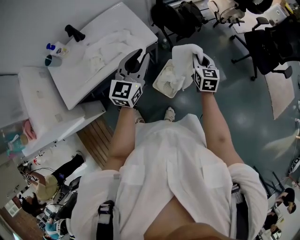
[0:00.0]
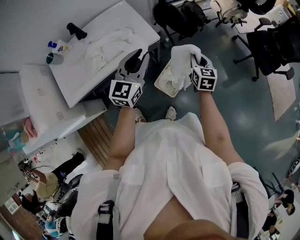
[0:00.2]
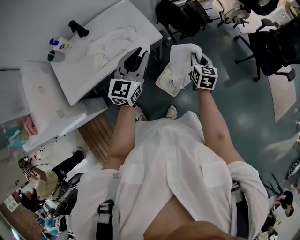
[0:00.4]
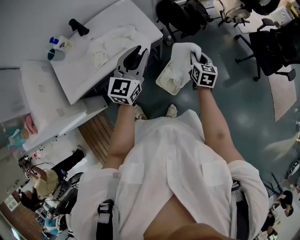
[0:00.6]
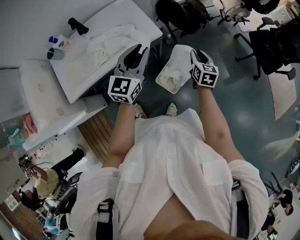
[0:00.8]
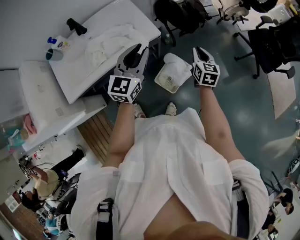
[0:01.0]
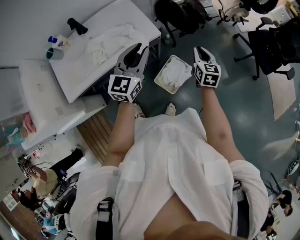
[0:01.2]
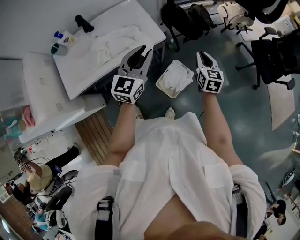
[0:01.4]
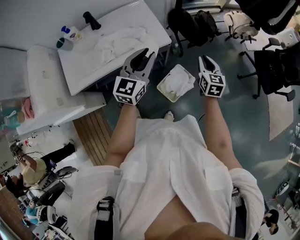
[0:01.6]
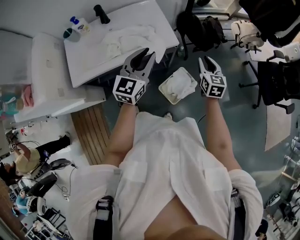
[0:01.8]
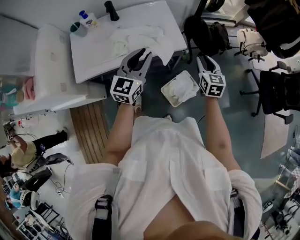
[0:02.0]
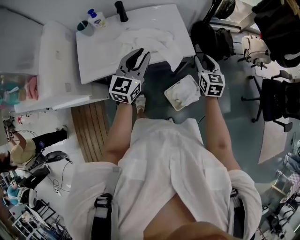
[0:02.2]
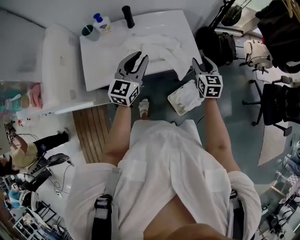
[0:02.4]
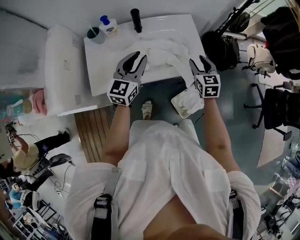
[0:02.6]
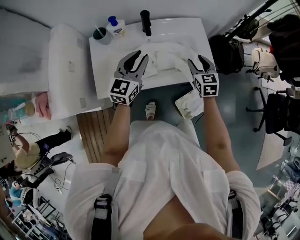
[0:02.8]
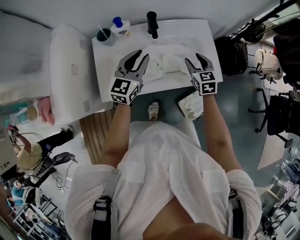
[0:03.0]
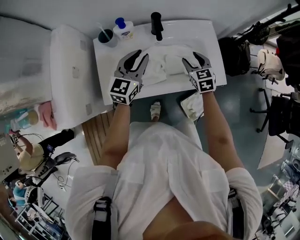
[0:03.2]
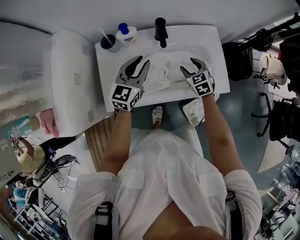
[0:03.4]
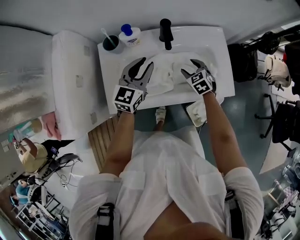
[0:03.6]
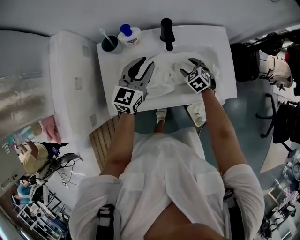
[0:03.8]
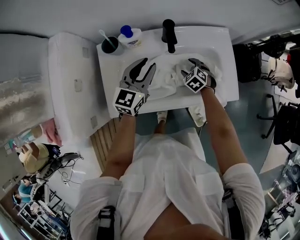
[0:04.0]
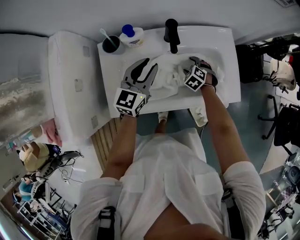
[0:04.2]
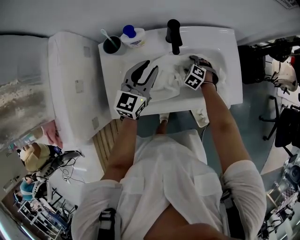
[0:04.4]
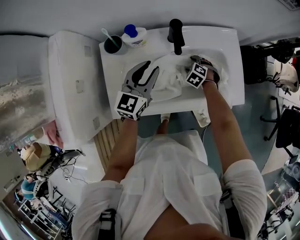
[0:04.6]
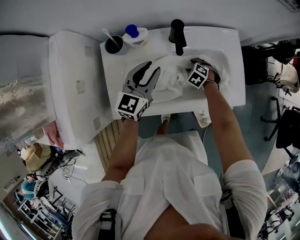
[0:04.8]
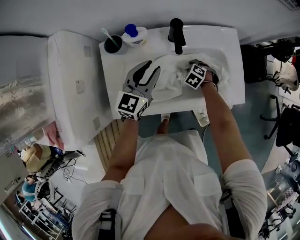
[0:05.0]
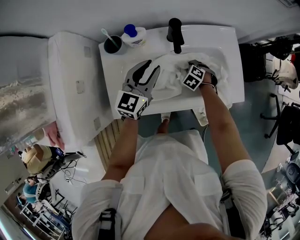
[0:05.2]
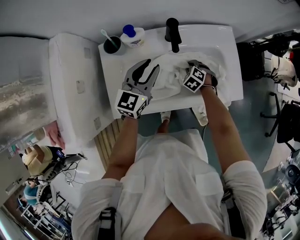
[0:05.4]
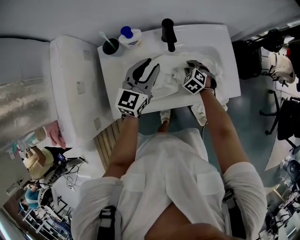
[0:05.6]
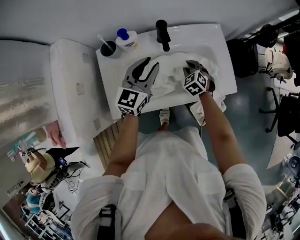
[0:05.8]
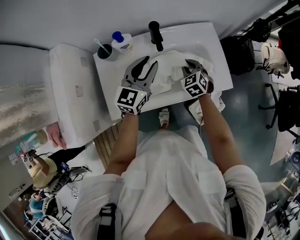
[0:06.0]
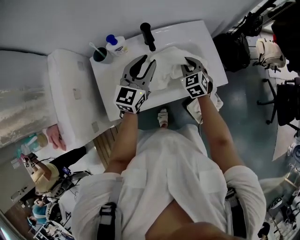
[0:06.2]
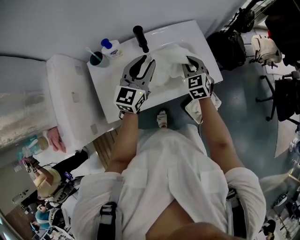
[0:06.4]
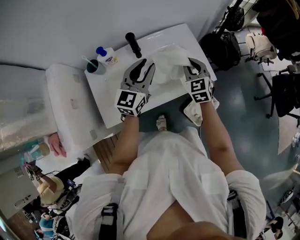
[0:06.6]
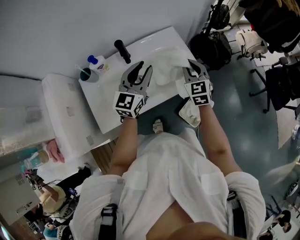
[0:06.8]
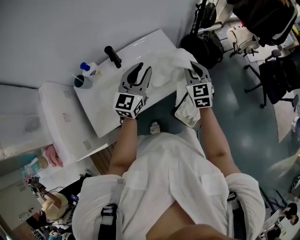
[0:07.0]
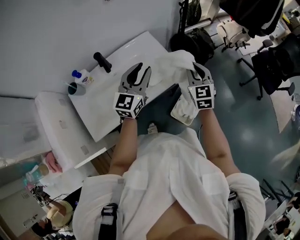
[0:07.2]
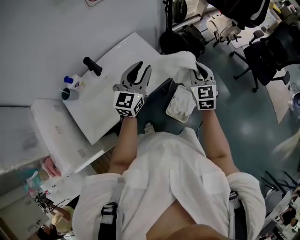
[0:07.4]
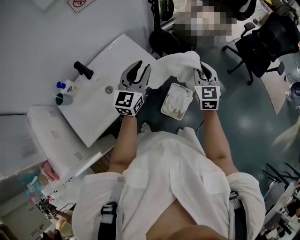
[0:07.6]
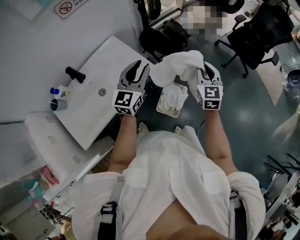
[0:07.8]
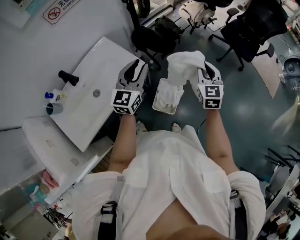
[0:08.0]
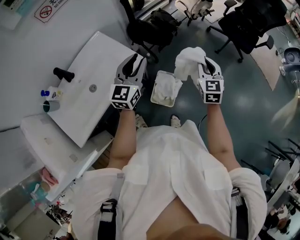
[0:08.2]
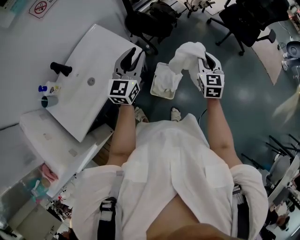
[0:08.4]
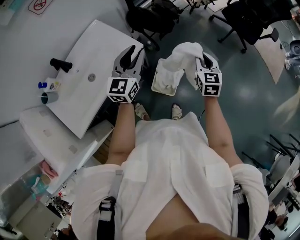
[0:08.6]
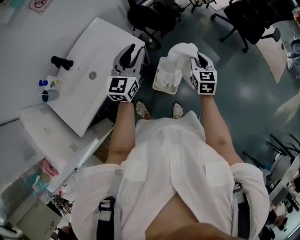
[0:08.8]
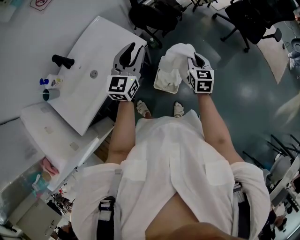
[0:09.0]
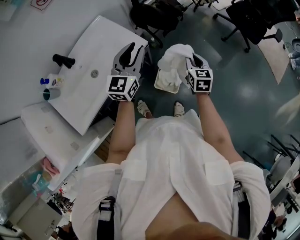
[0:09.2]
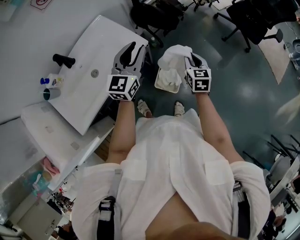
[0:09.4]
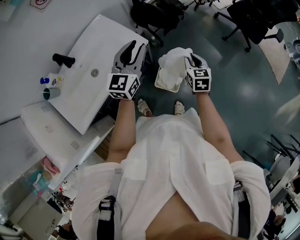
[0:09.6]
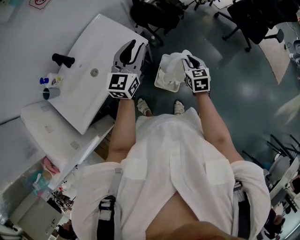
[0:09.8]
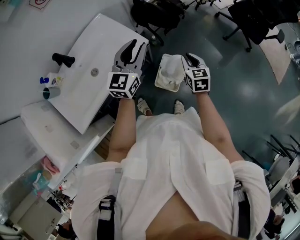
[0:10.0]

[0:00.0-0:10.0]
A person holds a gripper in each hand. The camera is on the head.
0:00.0 to 0:01.4: The grippers make only small movements.
0:01.4 to 0:02.8: The left gripper shifts some 30 cm to the left. Meanwhile the right gripper goes about 40 cm to the left and forward, and swivels about 30 degrees.
0:02.8 to 0:04.2: The left gripper moves forward, downward and to the left, approximately 15 cm, while the right gripper heads downward, to the left and forward, covering approximately 25 cm, and tilts its fingers some 40 degrees downward.
0:04.2 to 0:05.8: The right gripper shifts about 10 cm upward, turns by some 20 degrees, and closes.
0:05.8 to 0:07.2: The right gripper travels to the right and upward by about 40 cm, and points its fingers about 30 degrees further upward, while the left gripper shifts roughly 25 cm to the right.
0:07.2 to 0:08.6: The grippers both shift to the right by approximately 25 cm. The right gripper swivels approximately 30 degrees.
0:08.6 to 0:10.0: The right gripper travels to the left and downward by about 10 cm.

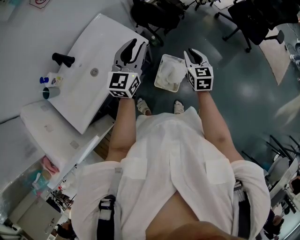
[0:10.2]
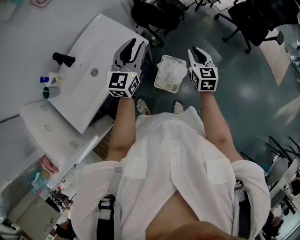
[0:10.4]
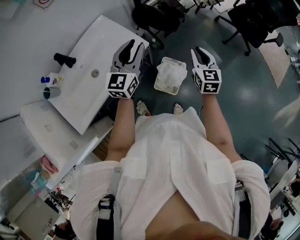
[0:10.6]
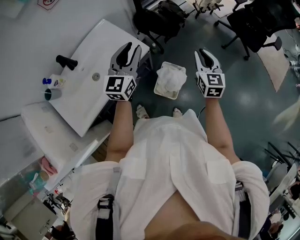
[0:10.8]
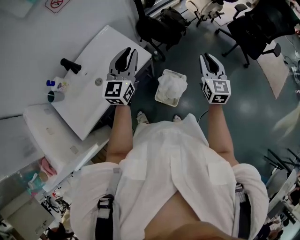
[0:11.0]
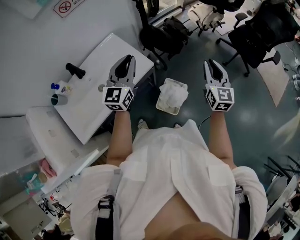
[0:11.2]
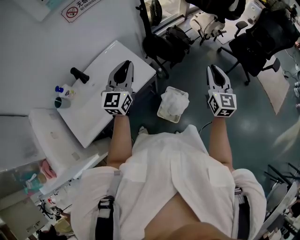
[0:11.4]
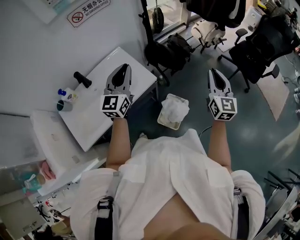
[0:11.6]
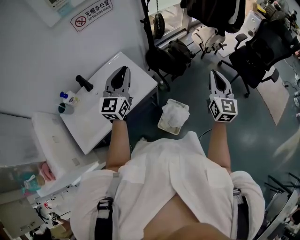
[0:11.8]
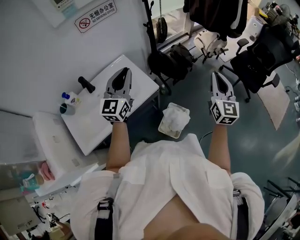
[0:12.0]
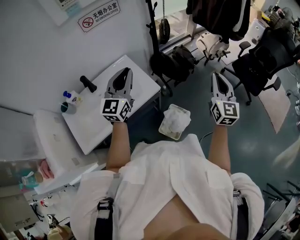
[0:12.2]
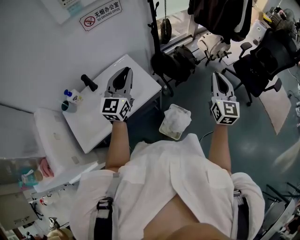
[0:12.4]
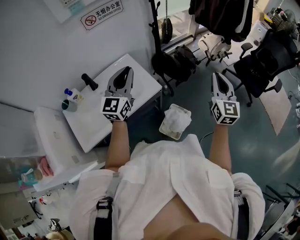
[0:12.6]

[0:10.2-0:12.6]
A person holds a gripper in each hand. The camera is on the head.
0:10.2 to 0:11.4: The right gripper moves upward, some 15 cm, and changes its angle by roughly 20 degrees. Meanwhile the left gripper heads upward and to the left, covering roughly 10 cm.
0:11.4 to 0:12.6: Both grippers move upward, some 5 cm.

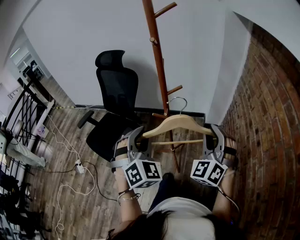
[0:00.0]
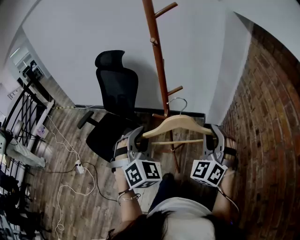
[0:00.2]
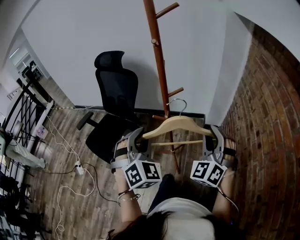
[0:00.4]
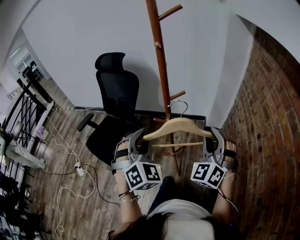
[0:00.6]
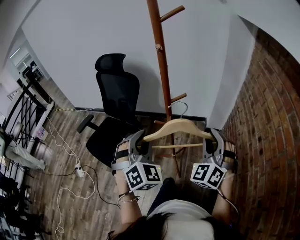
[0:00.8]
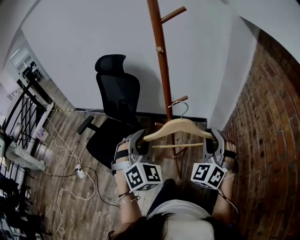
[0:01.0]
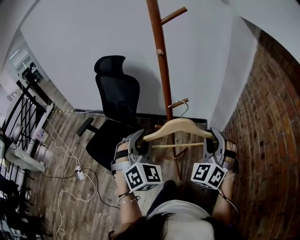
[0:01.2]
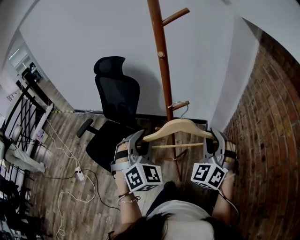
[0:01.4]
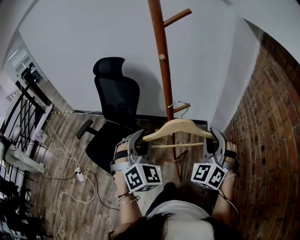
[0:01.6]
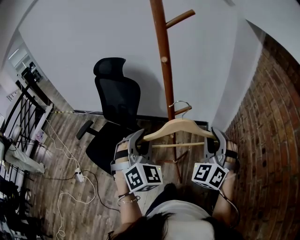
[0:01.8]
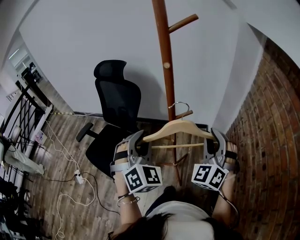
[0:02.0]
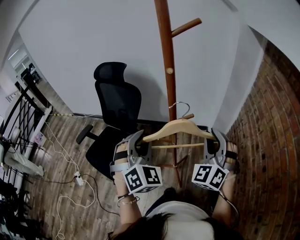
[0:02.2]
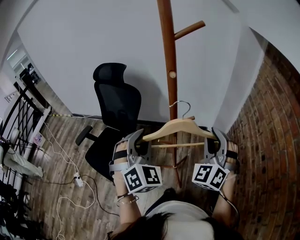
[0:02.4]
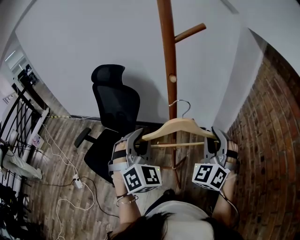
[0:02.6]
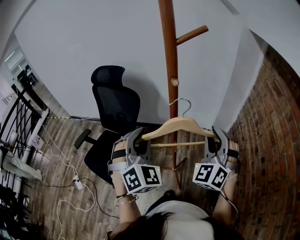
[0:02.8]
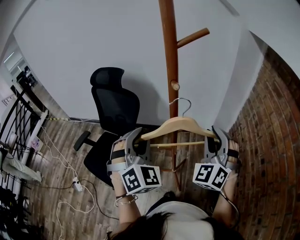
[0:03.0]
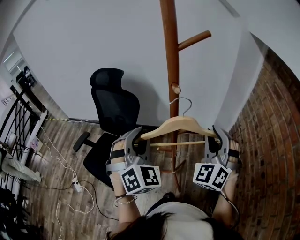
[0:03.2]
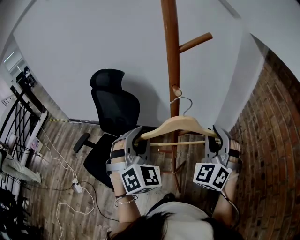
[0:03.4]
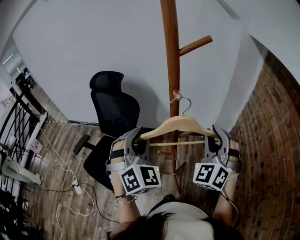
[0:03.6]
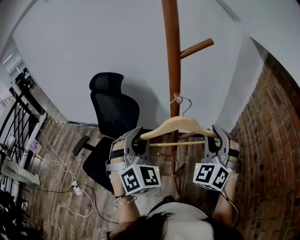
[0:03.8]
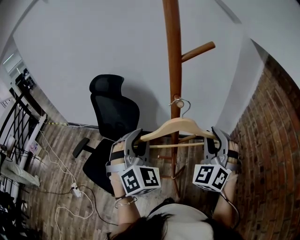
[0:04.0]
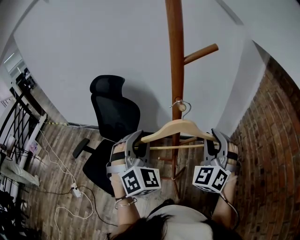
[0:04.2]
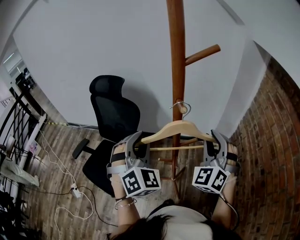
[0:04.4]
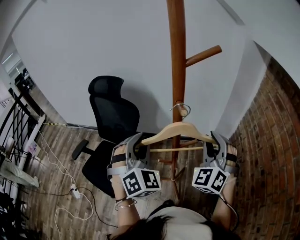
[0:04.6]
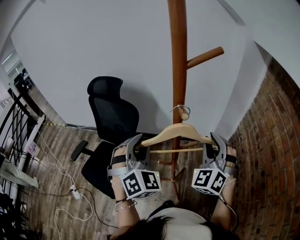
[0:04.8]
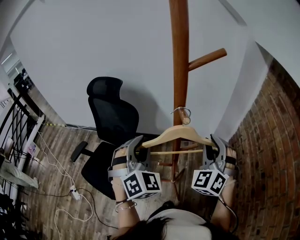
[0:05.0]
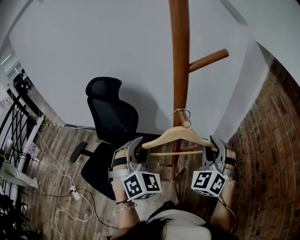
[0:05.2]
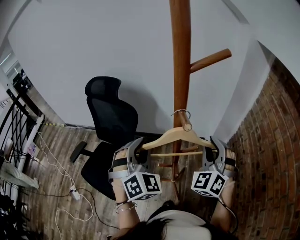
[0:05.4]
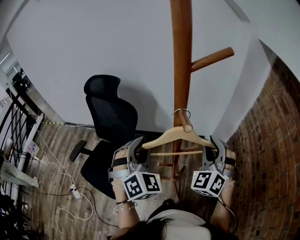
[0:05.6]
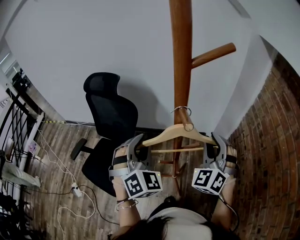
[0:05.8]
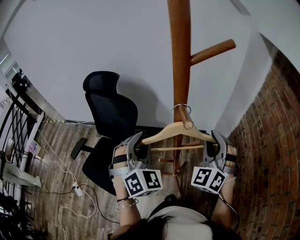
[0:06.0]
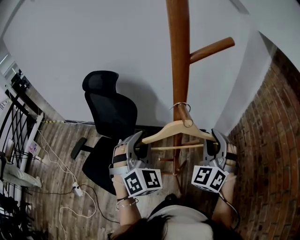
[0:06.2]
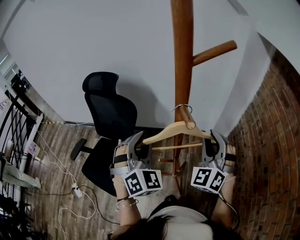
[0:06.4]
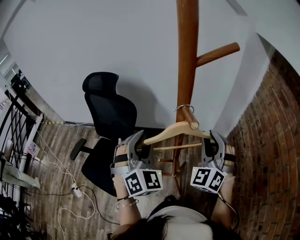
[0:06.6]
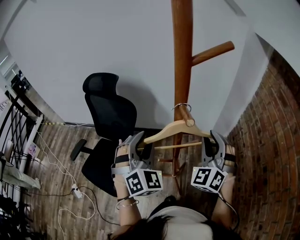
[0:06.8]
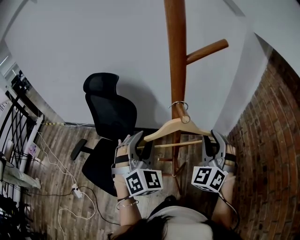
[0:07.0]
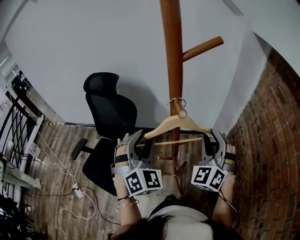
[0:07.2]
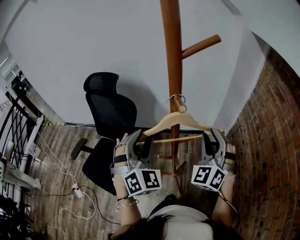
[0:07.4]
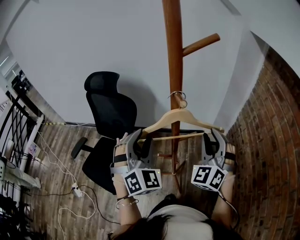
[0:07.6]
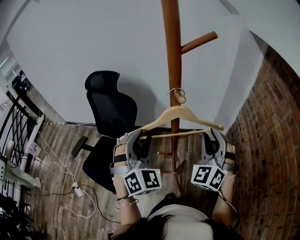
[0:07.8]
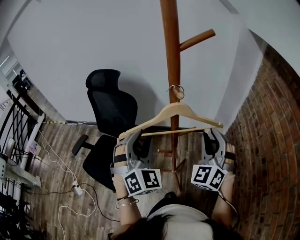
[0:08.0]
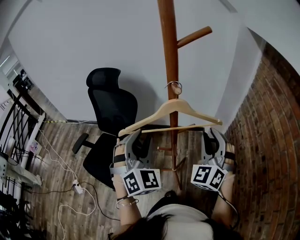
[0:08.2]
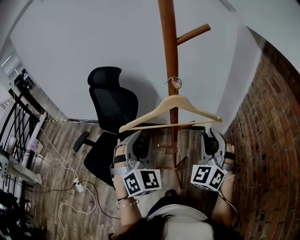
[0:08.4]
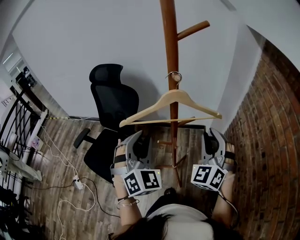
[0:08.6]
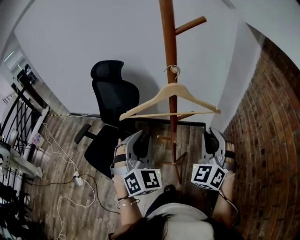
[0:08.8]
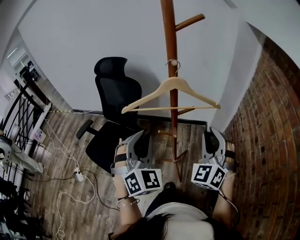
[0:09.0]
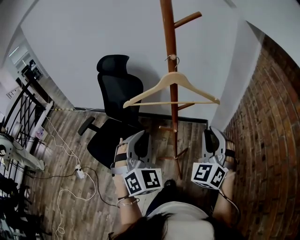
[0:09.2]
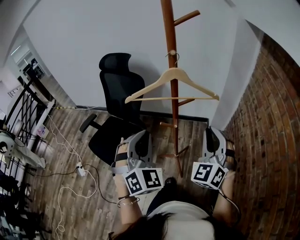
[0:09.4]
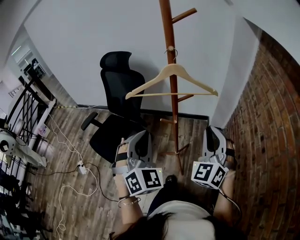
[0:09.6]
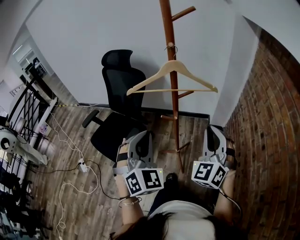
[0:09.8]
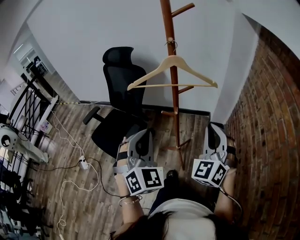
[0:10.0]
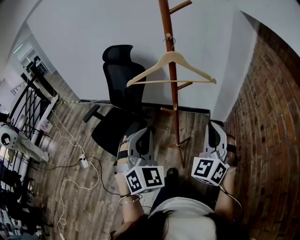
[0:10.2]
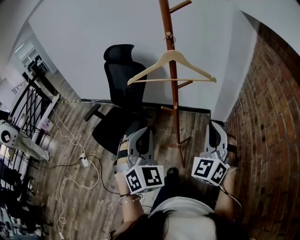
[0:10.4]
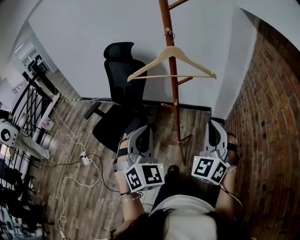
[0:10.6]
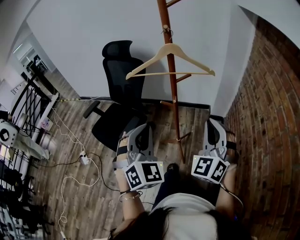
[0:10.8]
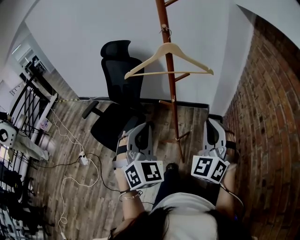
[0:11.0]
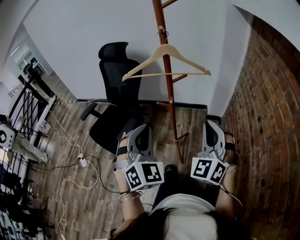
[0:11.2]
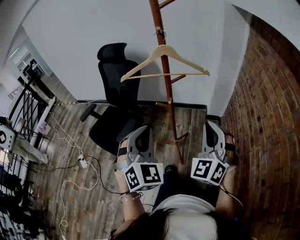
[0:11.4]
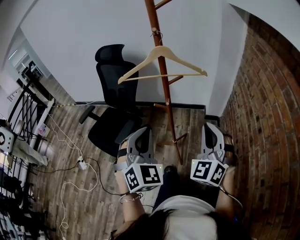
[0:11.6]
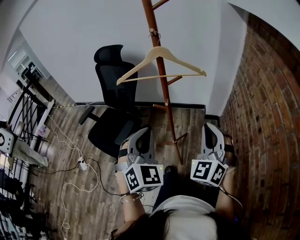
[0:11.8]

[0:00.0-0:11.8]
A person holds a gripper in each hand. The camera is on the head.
0:00.0 to 0:01.4: Both grippers travel together forward, about 10 cm.
0:01.4 to 0:03.0: Both grippers travel together forward and upward, some 10 cm.
0:03.0 to 0:04.4: The grippers make only small movements.
0:04.4 to 0:06.0: The right gripper changes place by about 5 cm. Meanwhile the left gripper ends up roughly 5 cm from where it was.
0:06.0 to 0:07.4: The grippers move only a little.
0:07.4 to 0:08.8: The two grippers go about 10 cm backward.
0:08.8 to 0:10.4: The grippers both shift backward by roughly 15 cm. The left gripper closes up.
0:10.4 to 0:11.8: The grippers make only small movements.
